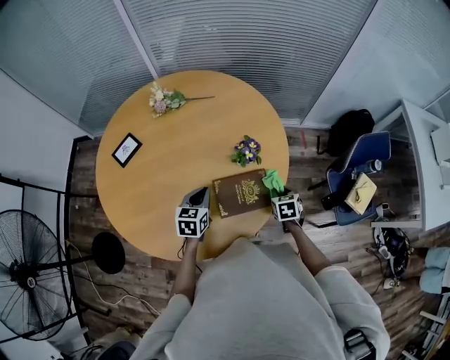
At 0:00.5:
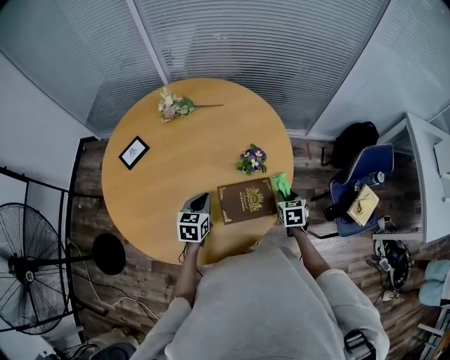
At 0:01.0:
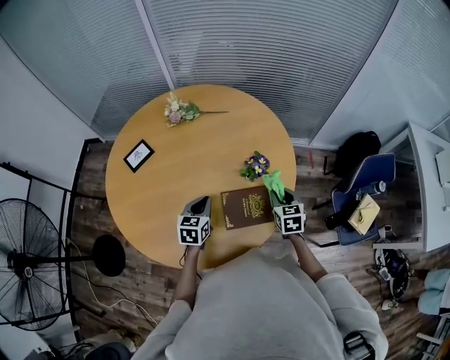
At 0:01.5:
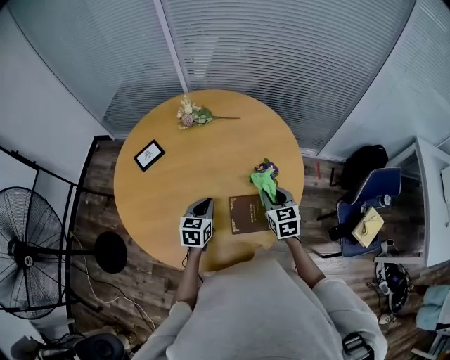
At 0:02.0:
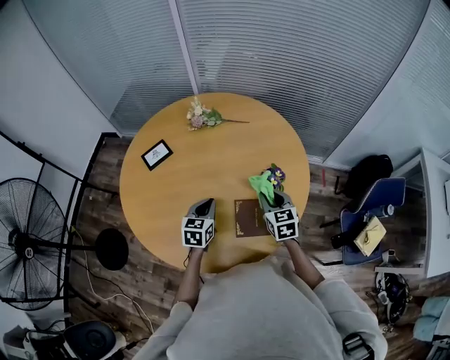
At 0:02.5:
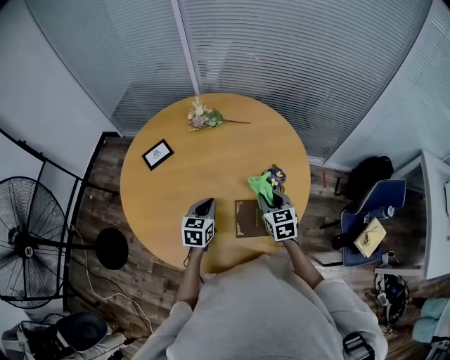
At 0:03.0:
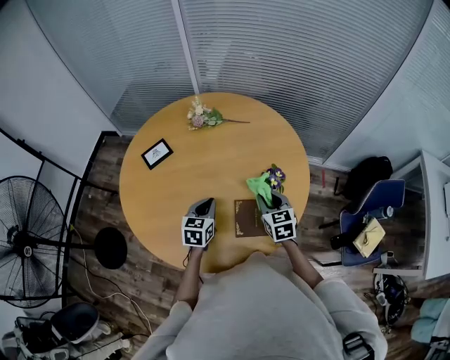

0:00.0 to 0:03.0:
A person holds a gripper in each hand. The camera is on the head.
0:00.0 to 0:01.5: The left gripper changes place by about 5 cm, while the right gripper is displaced upward and to the left by roughly 20 cm, and swivels roughly 30 degrees.
0:01.5 to 0:03.0: There are only small adjustments of the grippers.

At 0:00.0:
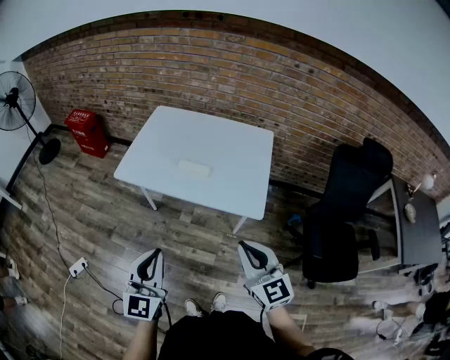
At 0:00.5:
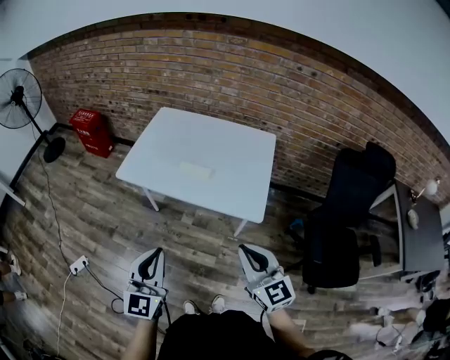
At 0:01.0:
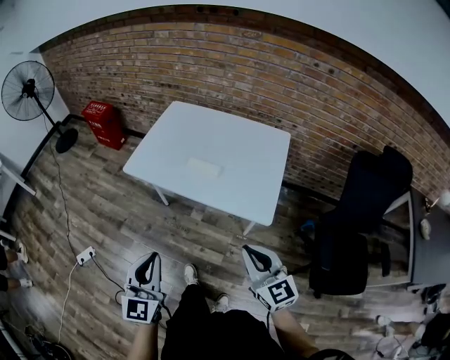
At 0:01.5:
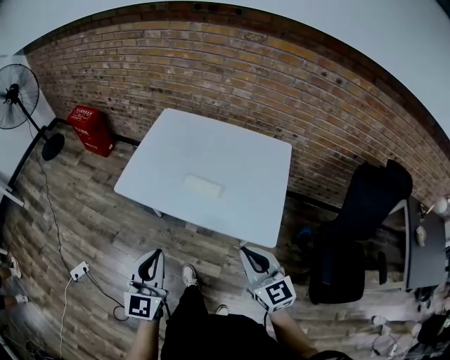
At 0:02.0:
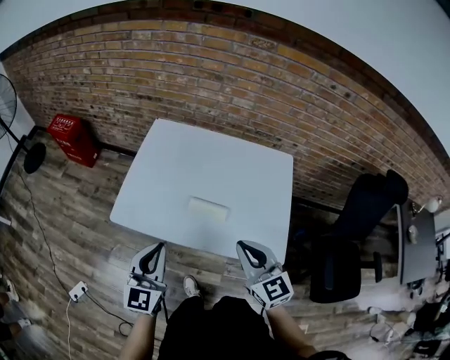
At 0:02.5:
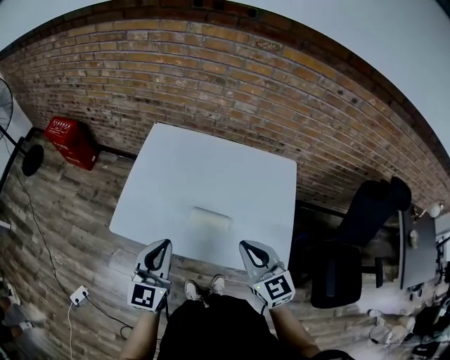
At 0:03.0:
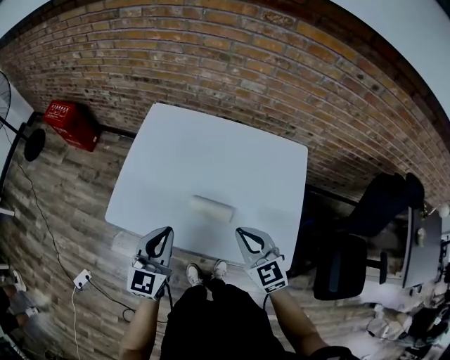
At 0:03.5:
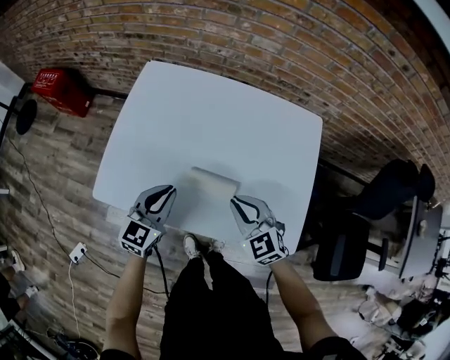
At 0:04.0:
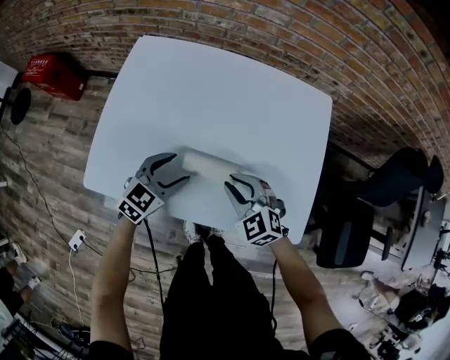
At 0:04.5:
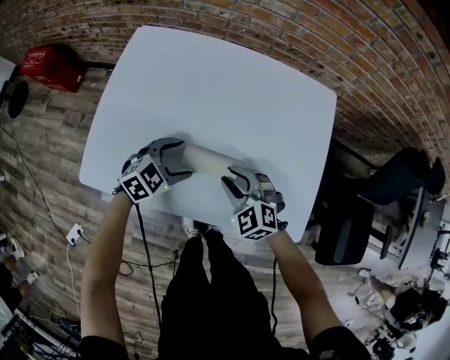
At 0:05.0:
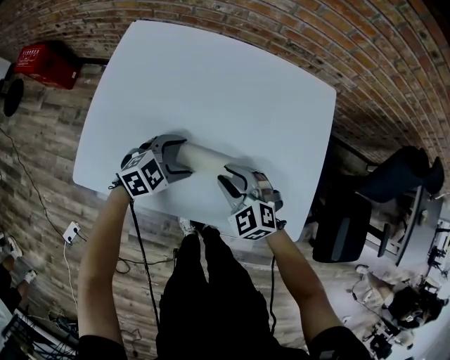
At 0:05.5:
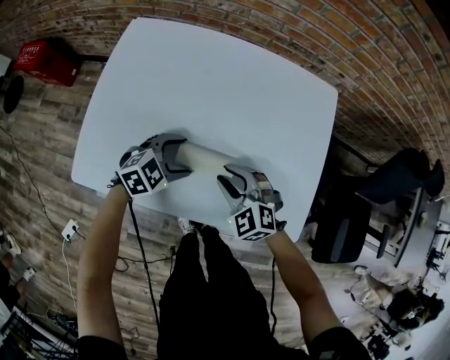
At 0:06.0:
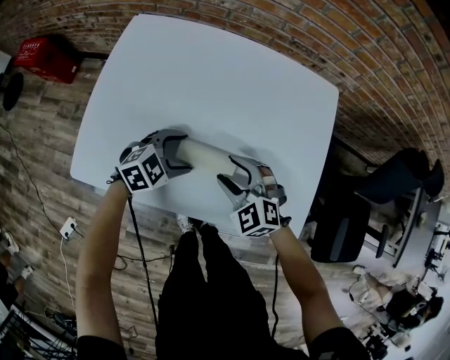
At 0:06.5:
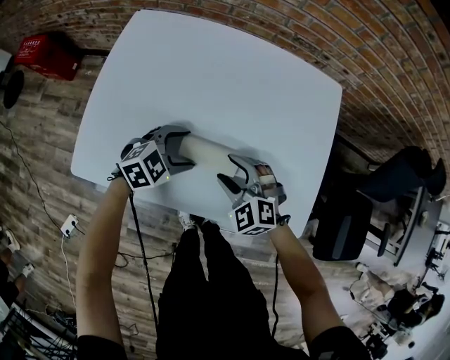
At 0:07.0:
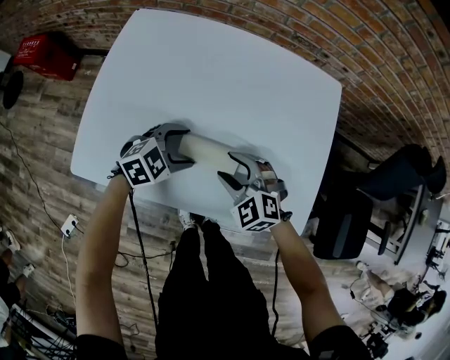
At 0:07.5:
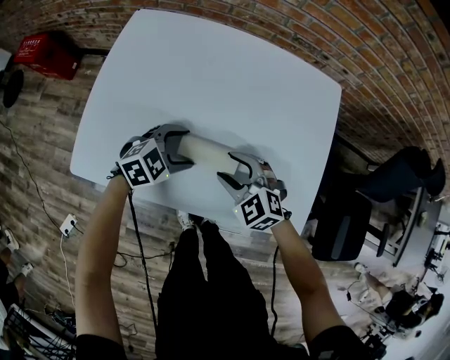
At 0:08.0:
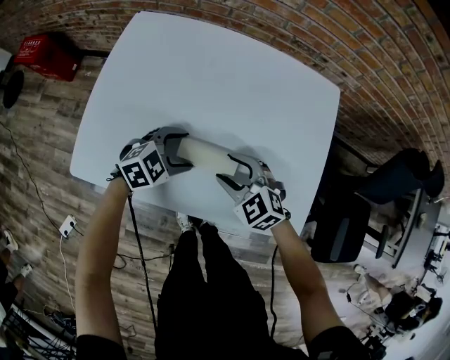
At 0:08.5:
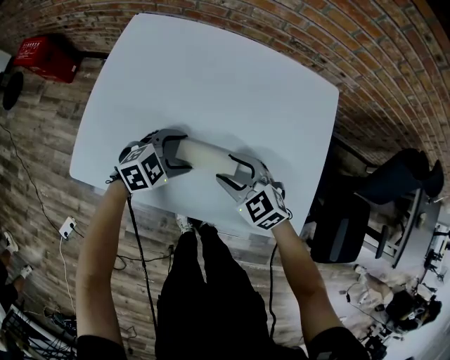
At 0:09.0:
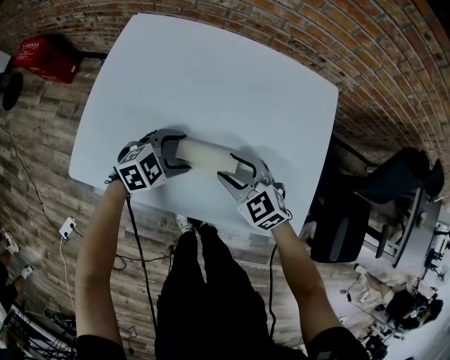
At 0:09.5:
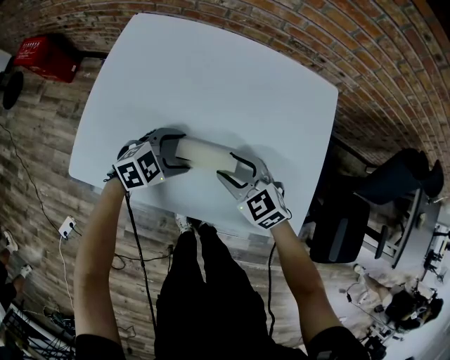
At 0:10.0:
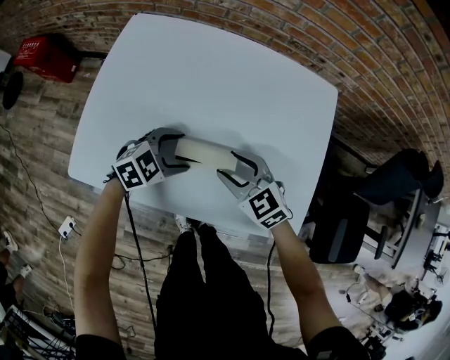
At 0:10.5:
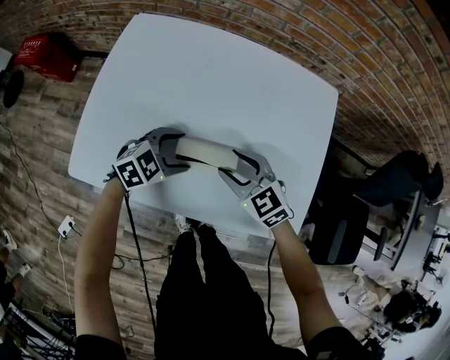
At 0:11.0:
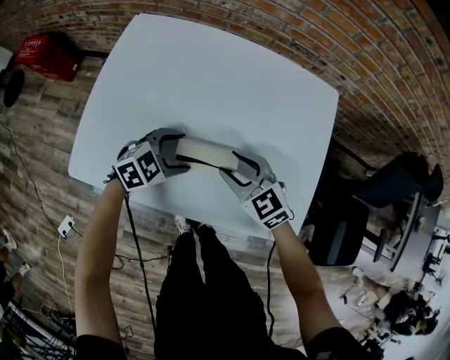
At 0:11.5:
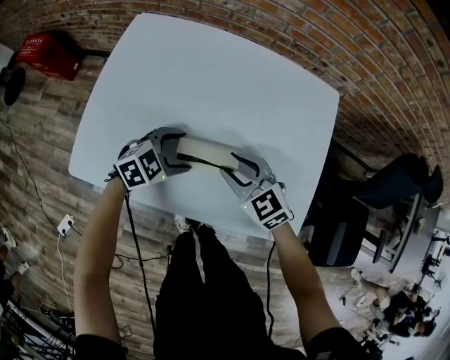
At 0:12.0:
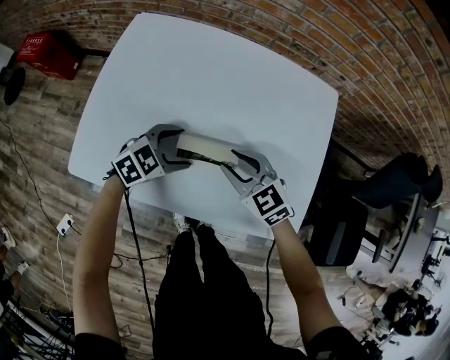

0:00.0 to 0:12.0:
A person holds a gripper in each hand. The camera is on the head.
0:00.0 to 0:02.0: Both grippers move forward, roughly 30 cm.
0:02.0 to 0:04.0: The two grippers go some 30 cm downward and forward. The right gripper turns by some 30 degrees. The left gripper turns by approximately 40 degrees, and opens.
0:04.0 to 0:06.0: The left gripper heads downward, covering about 5 cm, and turns by approximately 30 degrees. The right gripper opens its fingers.
0:06.0 to 0:08.0: The grippers move only a little.
0:08.0 to 0:12.0: The grippers make only small movements.

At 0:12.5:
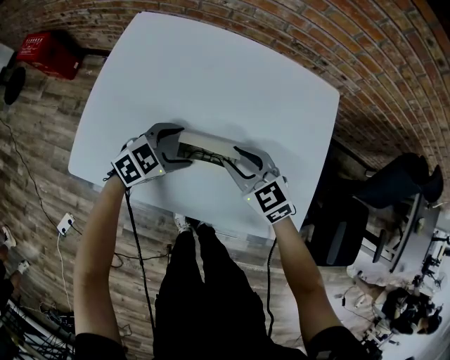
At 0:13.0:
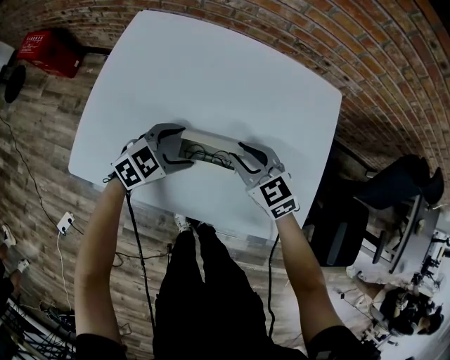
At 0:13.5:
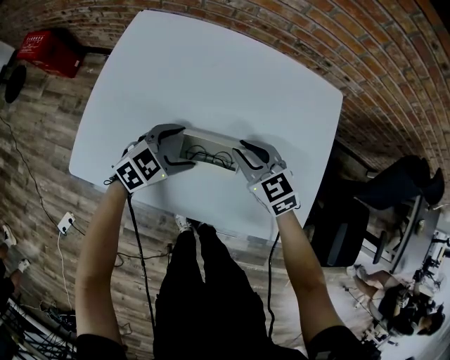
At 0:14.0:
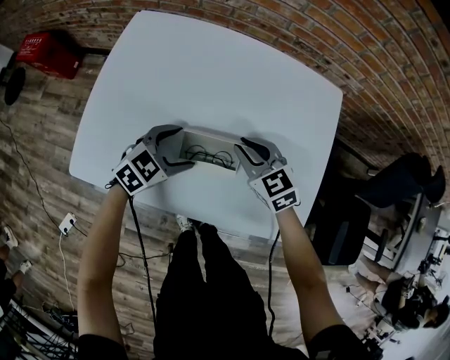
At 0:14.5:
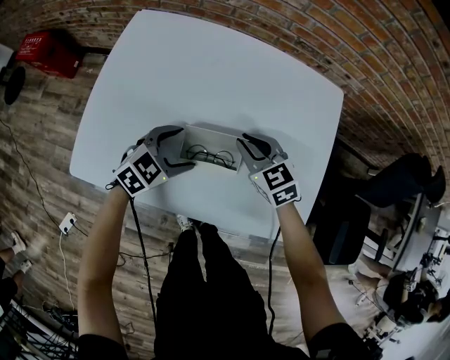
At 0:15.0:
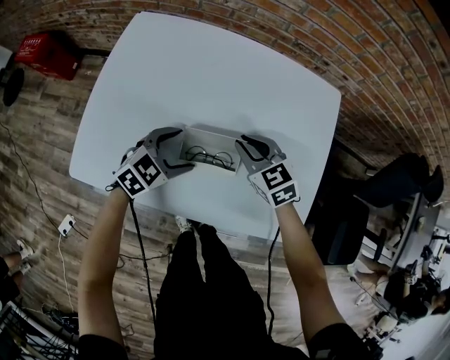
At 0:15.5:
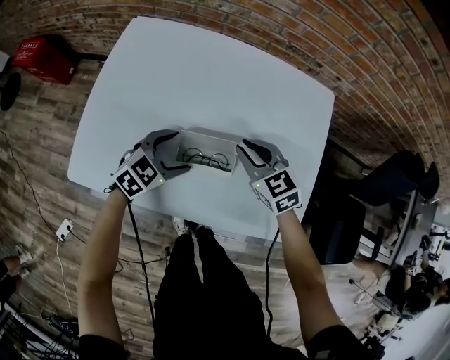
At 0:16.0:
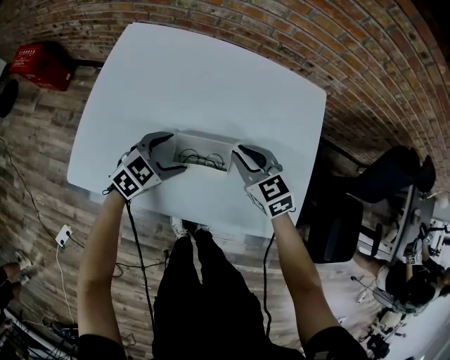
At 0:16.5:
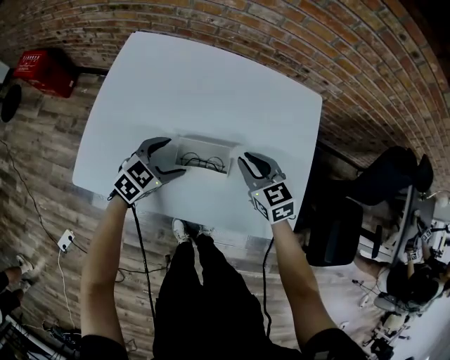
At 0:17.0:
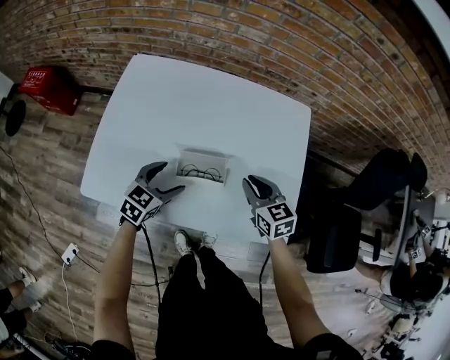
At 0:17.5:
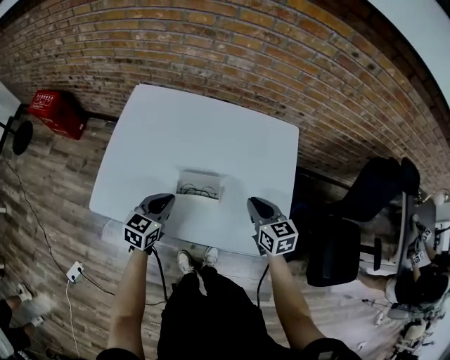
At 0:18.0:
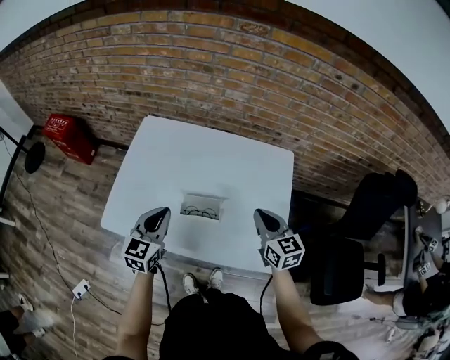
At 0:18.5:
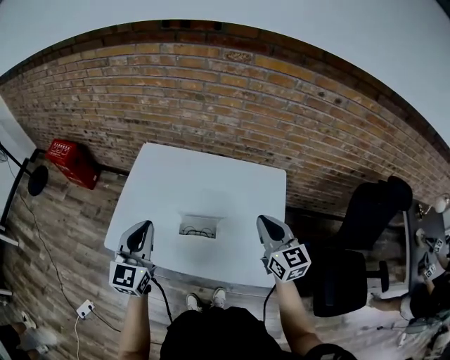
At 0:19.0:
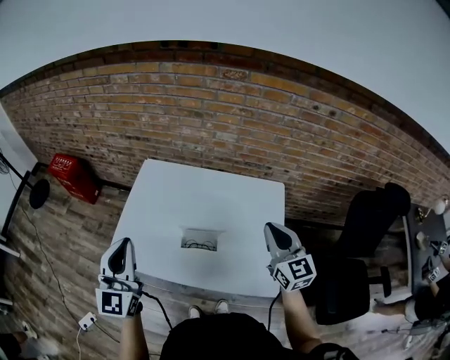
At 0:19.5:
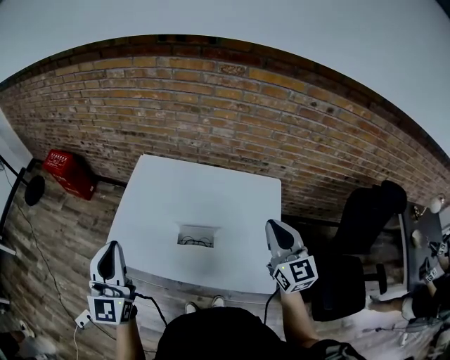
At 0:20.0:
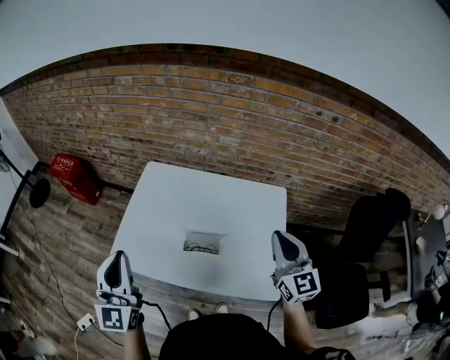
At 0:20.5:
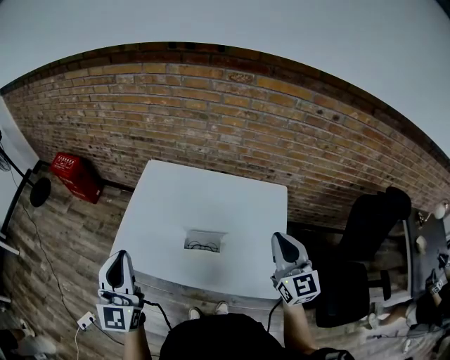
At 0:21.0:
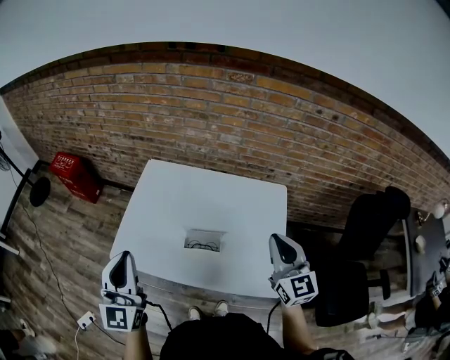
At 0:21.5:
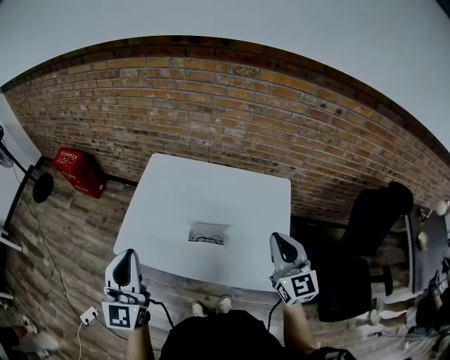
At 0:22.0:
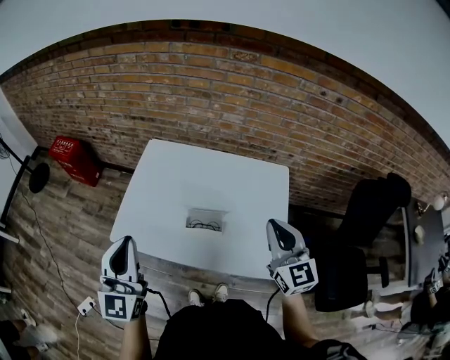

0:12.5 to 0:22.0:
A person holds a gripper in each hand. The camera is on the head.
0:12.5 to 0:14.5: The right gripper goes roughly 5 cm forward.
0:14.5 to 0:16.5: The right gripper moves some 5 cm.
0:16.5 to 0:18.0: The right gripper heads upward and to the right, covering roughly 15 cm, and swivels roughly 20 degrees. The left gripper travels upward by about 20 cm, rotates about 40 degrees, and closes up.
0:18.0 to 0:20.0: Both grippers travel together upward, about 20 cm. The left gripper rotates roughly 40 degrees. The right gripper changes its angle by about 20 degrees.
0:20.0 to 0:22.0: The right gripper moves about 5 cm.

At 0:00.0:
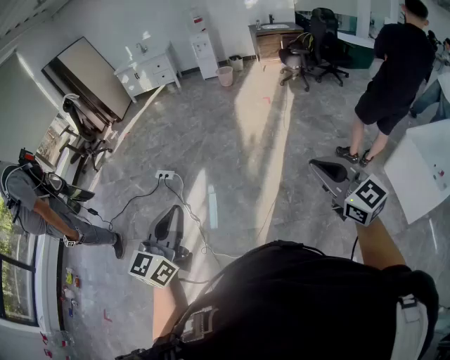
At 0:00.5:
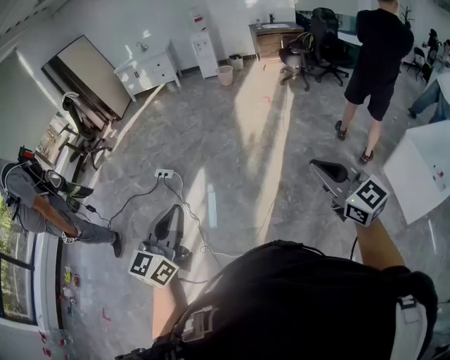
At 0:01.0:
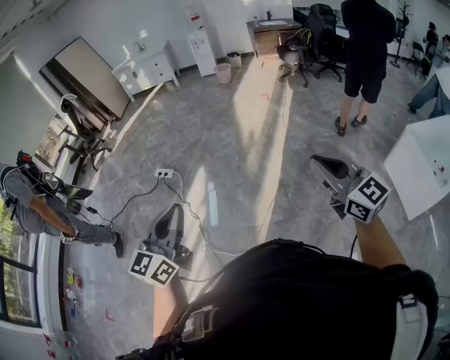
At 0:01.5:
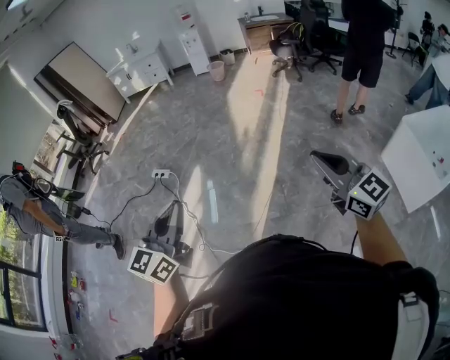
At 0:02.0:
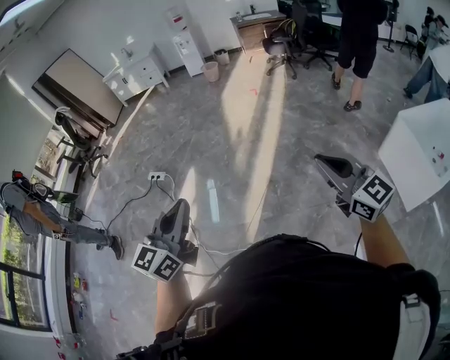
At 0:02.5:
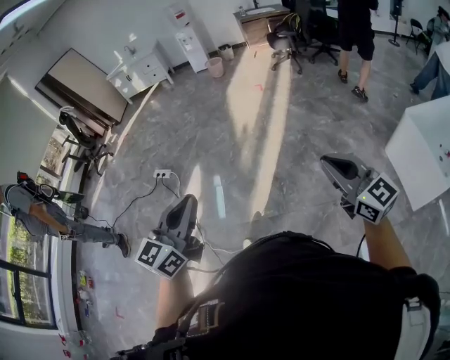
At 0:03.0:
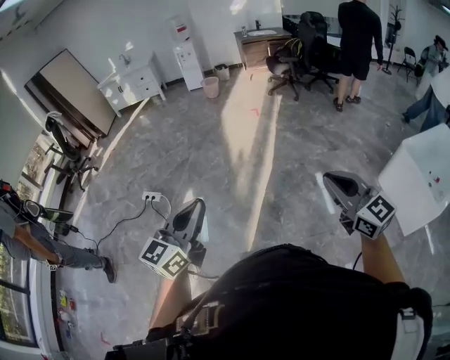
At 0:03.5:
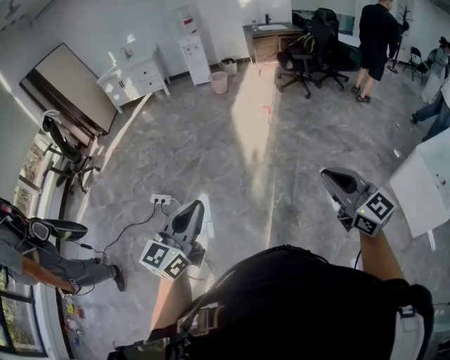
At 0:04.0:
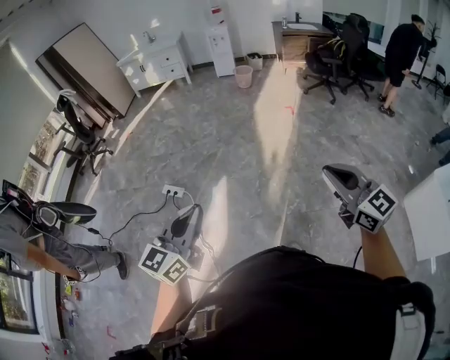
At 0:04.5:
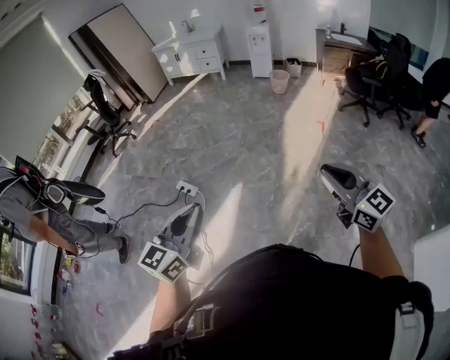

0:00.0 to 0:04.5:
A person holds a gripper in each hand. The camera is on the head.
0:00.0 to 0:02.0: Both grippers travel together to the right, approximately 20 cm.
0:02.0 to 0:04.5: The two grippers travel together, forward and to the left, about 60 cm.
